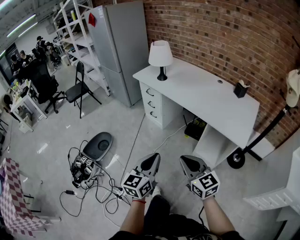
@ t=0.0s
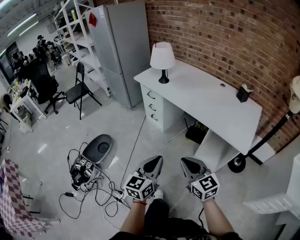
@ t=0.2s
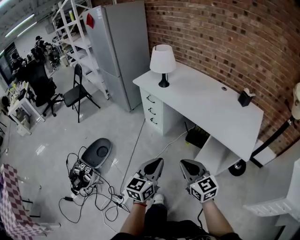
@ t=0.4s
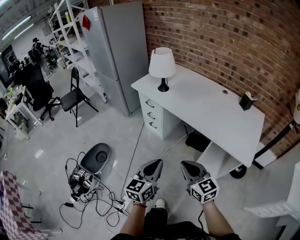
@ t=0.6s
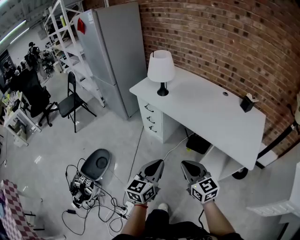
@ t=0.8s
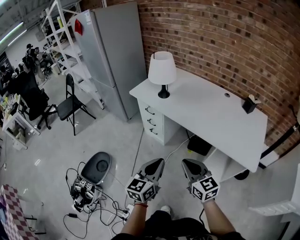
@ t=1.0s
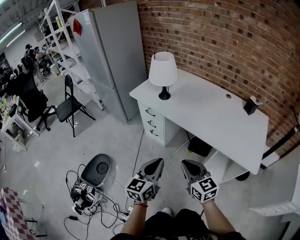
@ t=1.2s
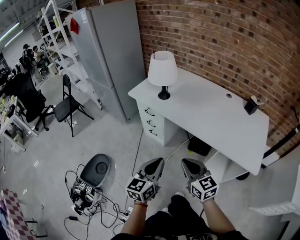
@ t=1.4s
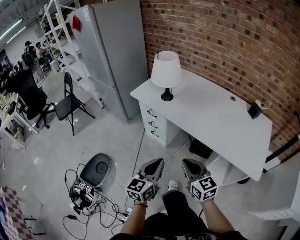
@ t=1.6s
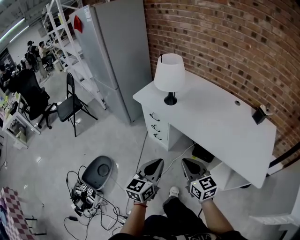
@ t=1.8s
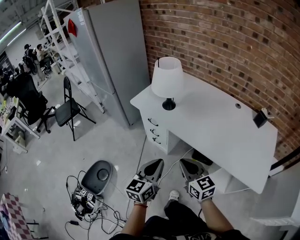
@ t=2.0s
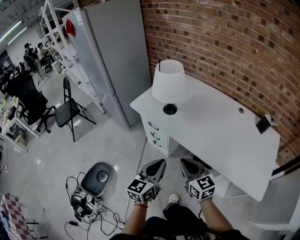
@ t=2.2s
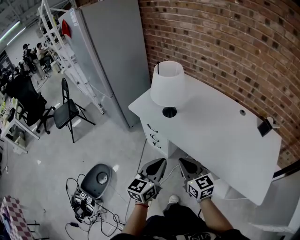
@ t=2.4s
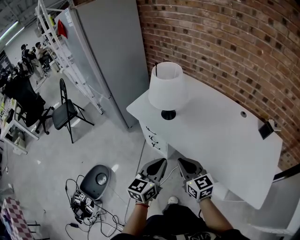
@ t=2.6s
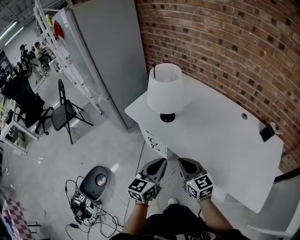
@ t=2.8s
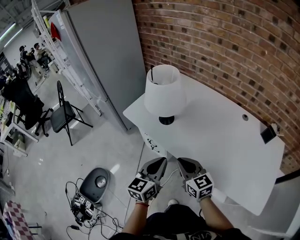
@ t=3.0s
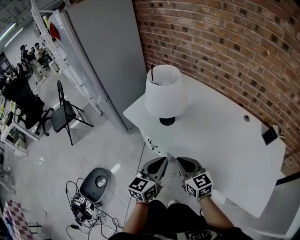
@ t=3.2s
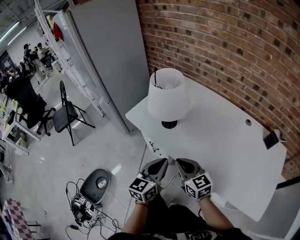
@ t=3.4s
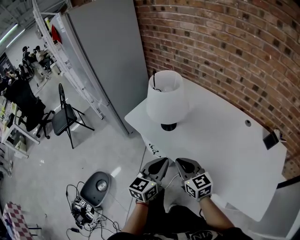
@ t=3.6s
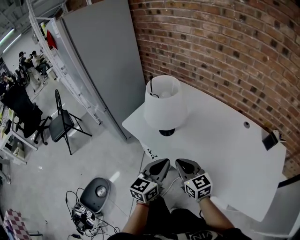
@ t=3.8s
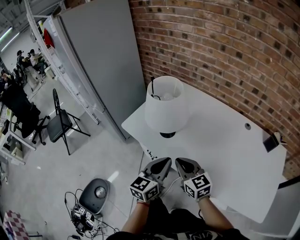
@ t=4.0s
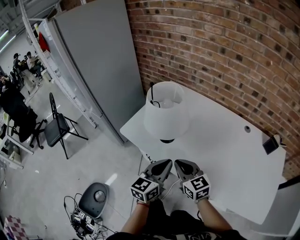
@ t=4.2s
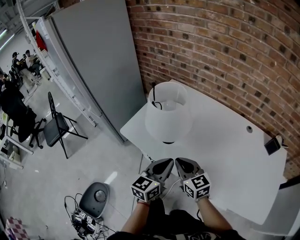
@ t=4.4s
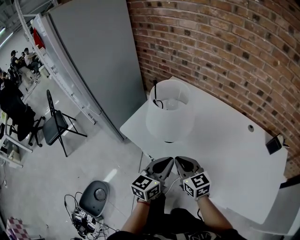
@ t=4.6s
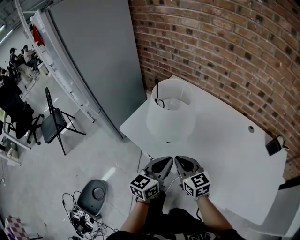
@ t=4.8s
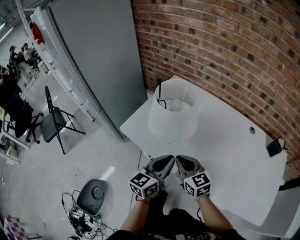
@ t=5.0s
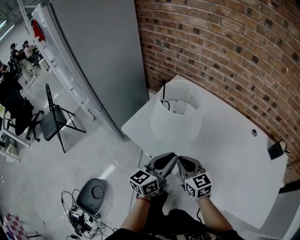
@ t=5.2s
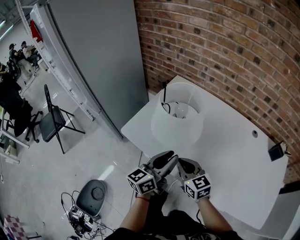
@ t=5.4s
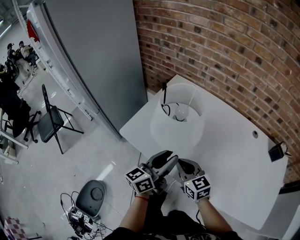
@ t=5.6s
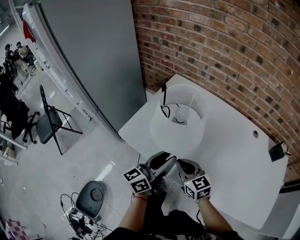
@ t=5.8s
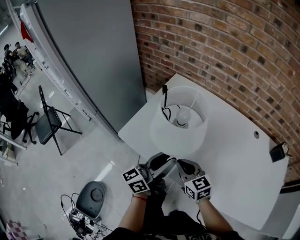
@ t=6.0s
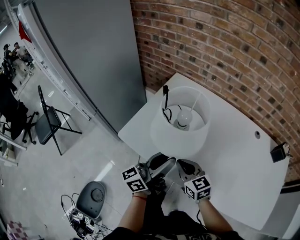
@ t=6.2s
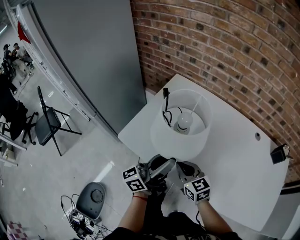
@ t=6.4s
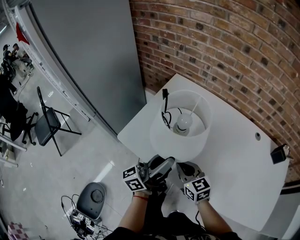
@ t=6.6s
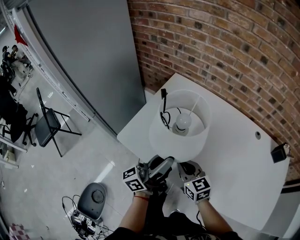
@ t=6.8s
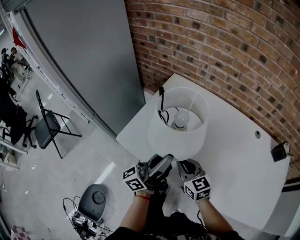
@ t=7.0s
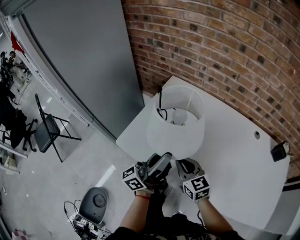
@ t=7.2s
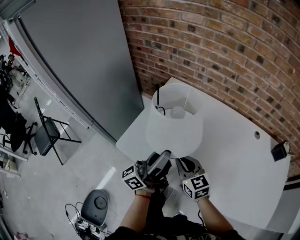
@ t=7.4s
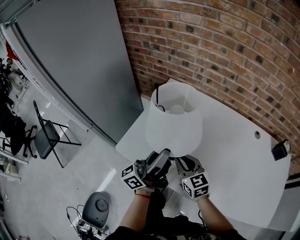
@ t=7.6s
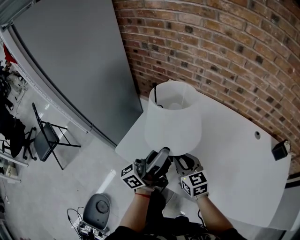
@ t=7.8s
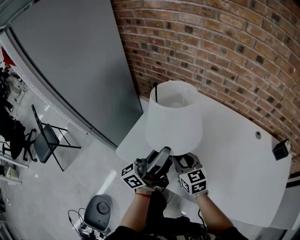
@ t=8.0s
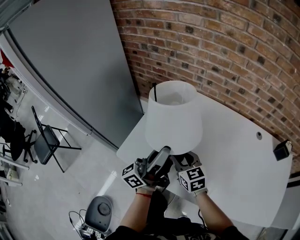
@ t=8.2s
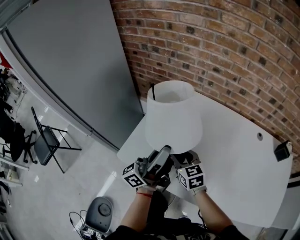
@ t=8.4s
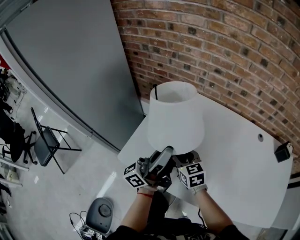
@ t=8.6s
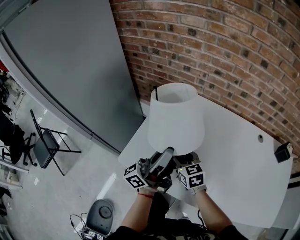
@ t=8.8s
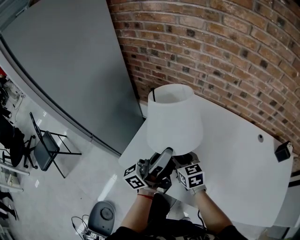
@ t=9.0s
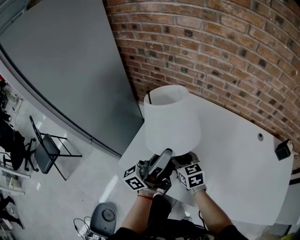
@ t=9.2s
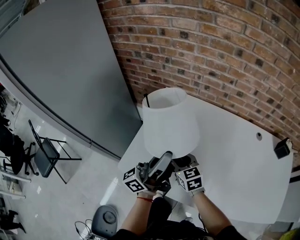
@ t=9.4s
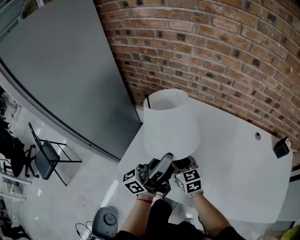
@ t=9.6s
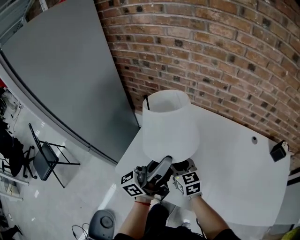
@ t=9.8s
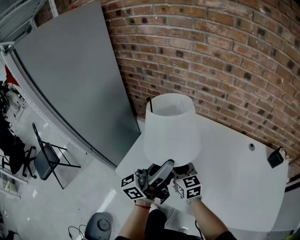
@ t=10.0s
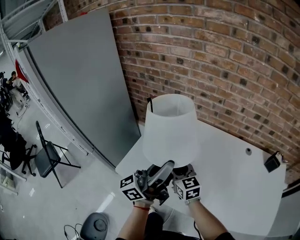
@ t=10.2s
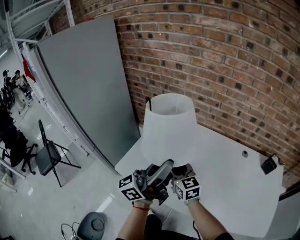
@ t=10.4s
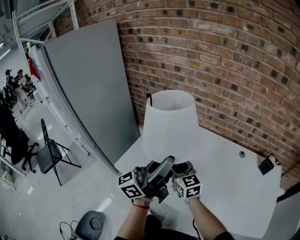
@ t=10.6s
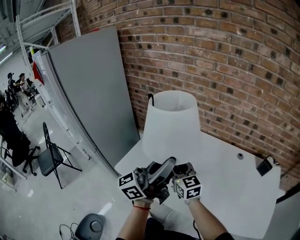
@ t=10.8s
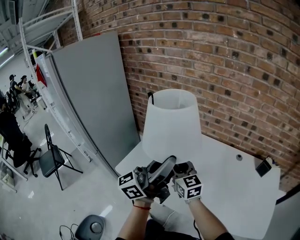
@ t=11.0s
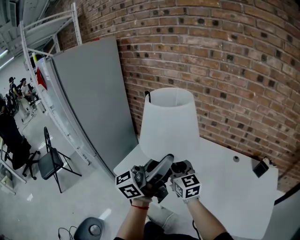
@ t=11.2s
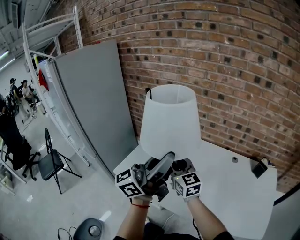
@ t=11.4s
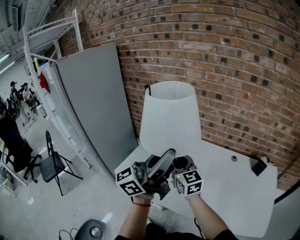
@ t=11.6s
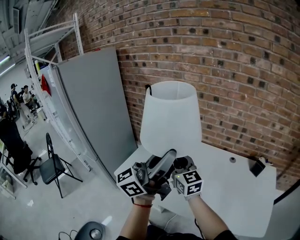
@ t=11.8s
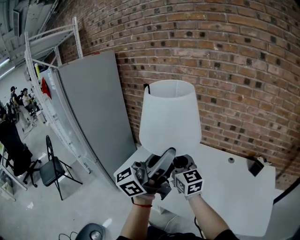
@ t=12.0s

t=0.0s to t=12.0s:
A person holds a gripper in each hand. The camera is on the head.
t=0.0s to t=1.6s: Both grippers travel together forward, approximately 30 cm.
t=1.6s to t=3.0s: Both grippers move forward, approximately 25 cm.
t=3.0s to t=4.4s: The grippers both shift forward by approximately 15 cm.
t=4.4s to t=6.0s: The right gripper is displaced forward and downward by some 10 cm; the left gripper shifts about 10 cm forward and to the left, rotates roughly 40 degrees, and opens its fingers.
t=6.0s to t=7.6s: The two grippers go approximately 5 cm forward. The left gripper closes.
t=7.6s to t=9.0s: The grippers both shift forward by about 5 cm. The right gripper opens.
t=9.0s to t=10.4s: The left gripper goes some 15 cm upward, to the right and backward; the right gripper is displaced upward by about 15 cm.
t=10.4s to t=12.0s: The left gripper travels upward, to the right and backward by about 20 cm. The right gripper moves upward and to the right, approximately 20 cm.

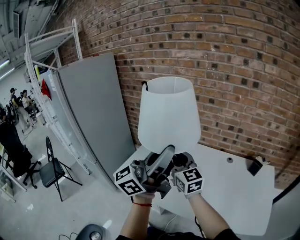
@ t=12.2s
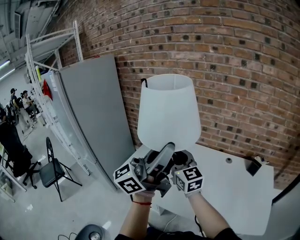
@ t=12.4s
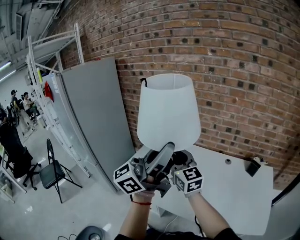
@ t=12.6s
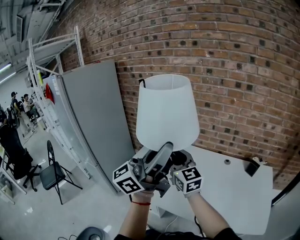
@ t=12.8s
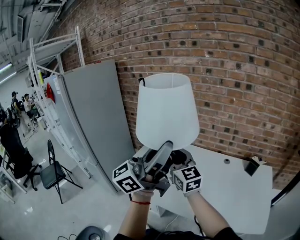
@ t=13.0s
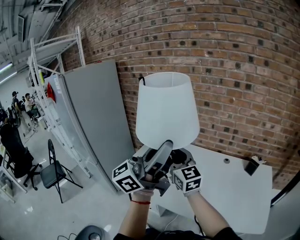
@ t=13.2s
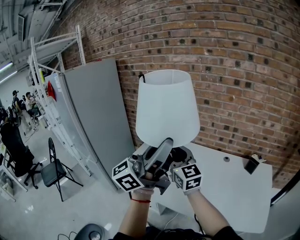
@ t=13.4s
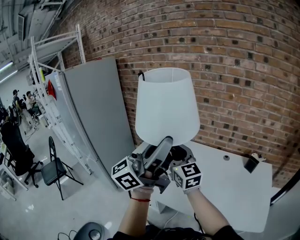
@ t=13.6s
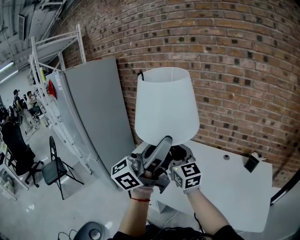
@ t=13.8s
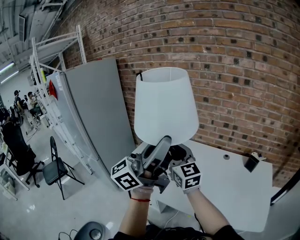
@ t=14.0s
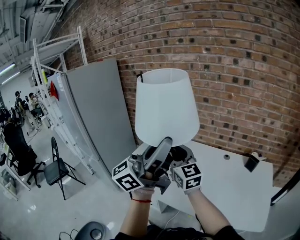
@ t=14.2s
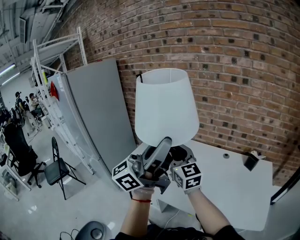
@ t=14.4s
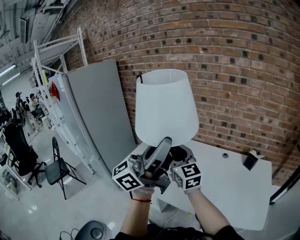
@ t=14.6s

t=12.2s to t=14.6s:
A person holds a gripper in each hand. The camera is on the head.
t=12.2s to t=13.4s: The left gripper changes place by about 5 cm. Meanwhile the right gripper changes place by roughly 5 cm.
t=13.4s to t=14.6s: There are only small adjustments of the grippers.

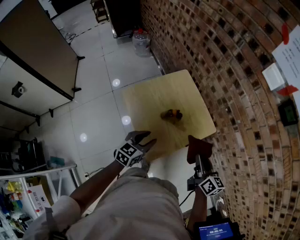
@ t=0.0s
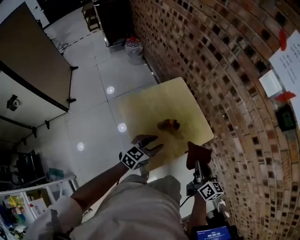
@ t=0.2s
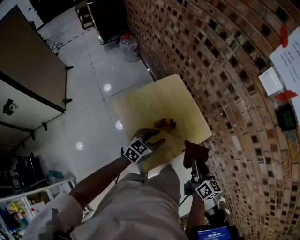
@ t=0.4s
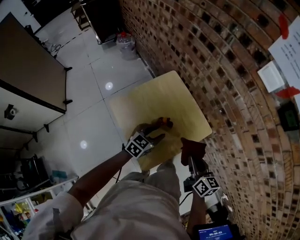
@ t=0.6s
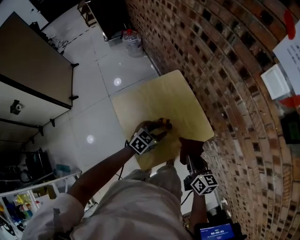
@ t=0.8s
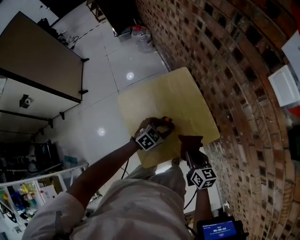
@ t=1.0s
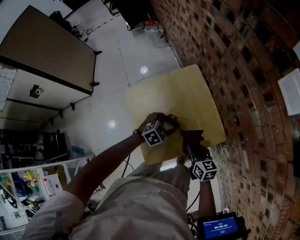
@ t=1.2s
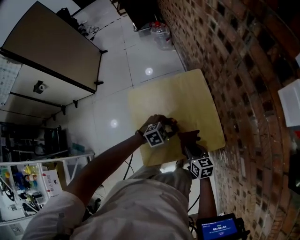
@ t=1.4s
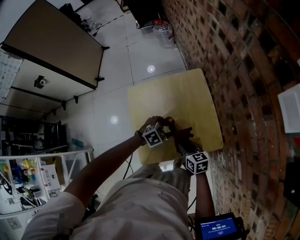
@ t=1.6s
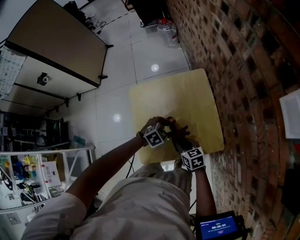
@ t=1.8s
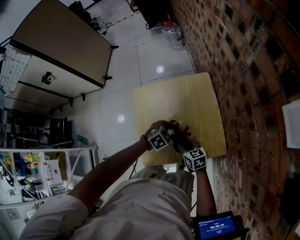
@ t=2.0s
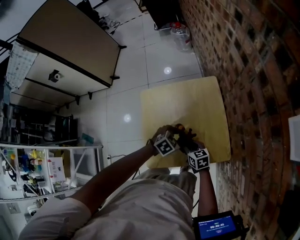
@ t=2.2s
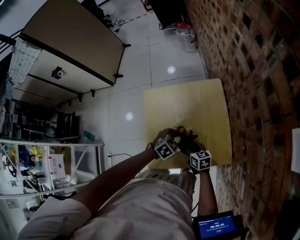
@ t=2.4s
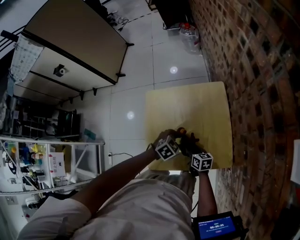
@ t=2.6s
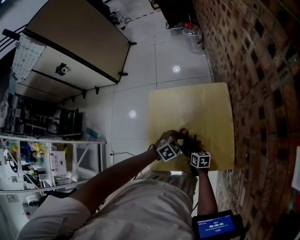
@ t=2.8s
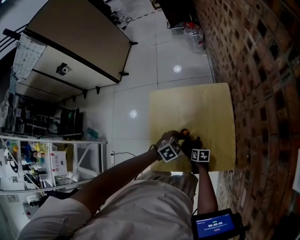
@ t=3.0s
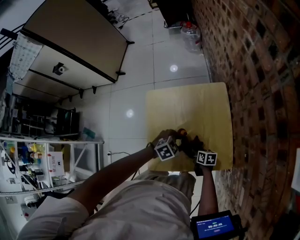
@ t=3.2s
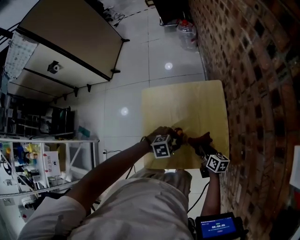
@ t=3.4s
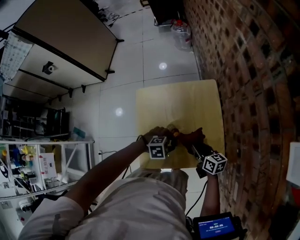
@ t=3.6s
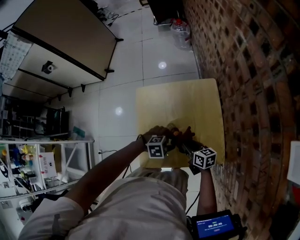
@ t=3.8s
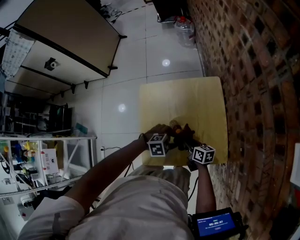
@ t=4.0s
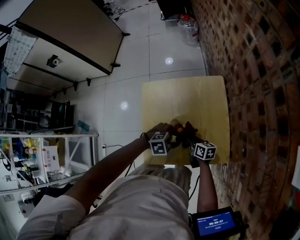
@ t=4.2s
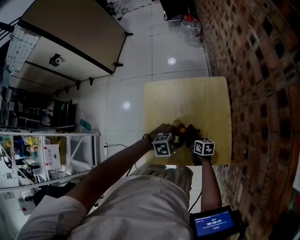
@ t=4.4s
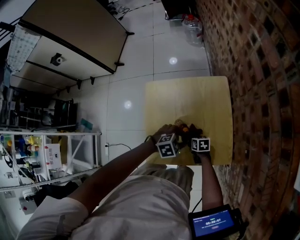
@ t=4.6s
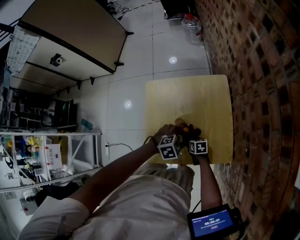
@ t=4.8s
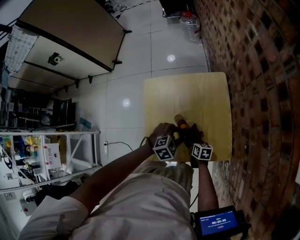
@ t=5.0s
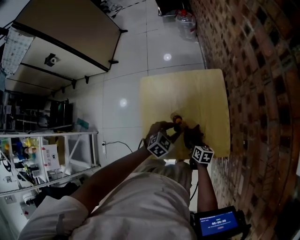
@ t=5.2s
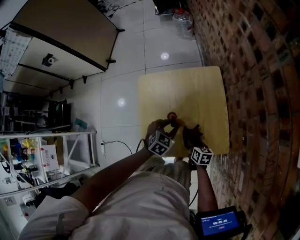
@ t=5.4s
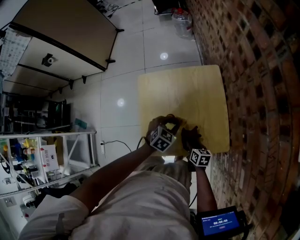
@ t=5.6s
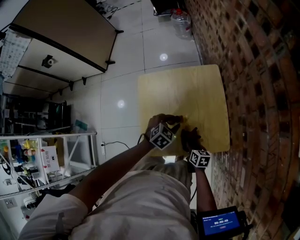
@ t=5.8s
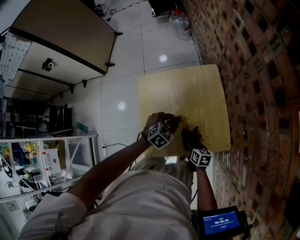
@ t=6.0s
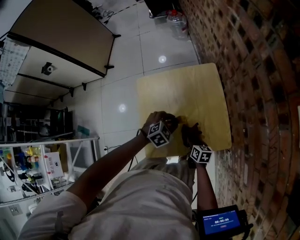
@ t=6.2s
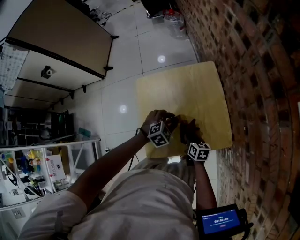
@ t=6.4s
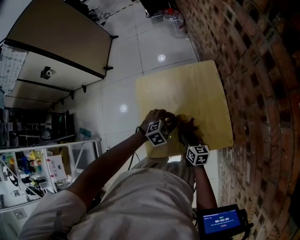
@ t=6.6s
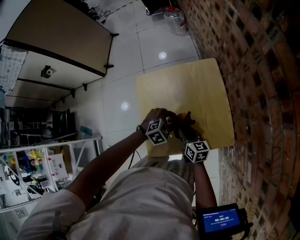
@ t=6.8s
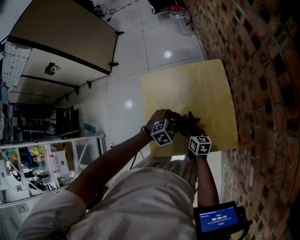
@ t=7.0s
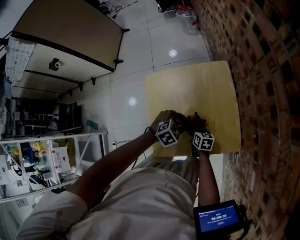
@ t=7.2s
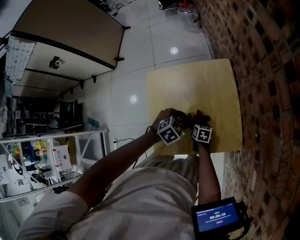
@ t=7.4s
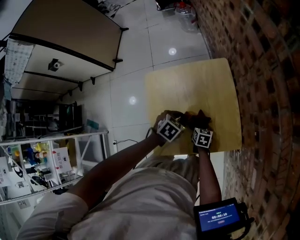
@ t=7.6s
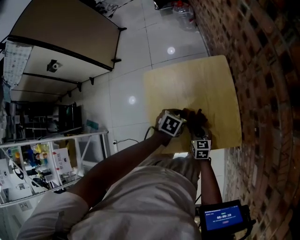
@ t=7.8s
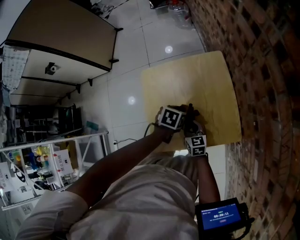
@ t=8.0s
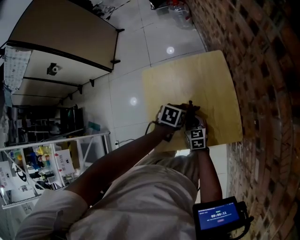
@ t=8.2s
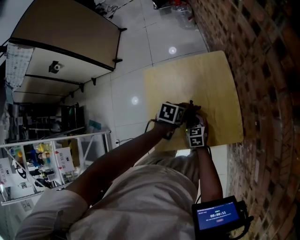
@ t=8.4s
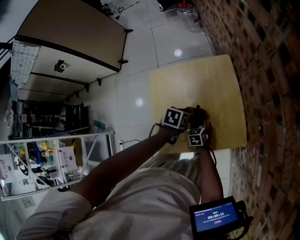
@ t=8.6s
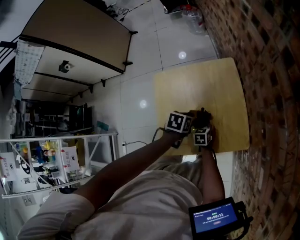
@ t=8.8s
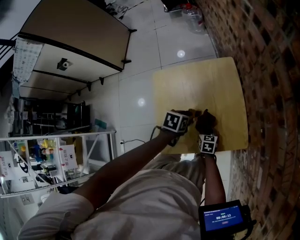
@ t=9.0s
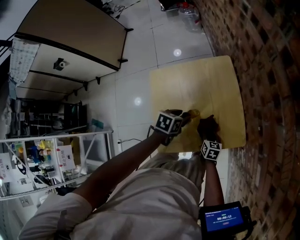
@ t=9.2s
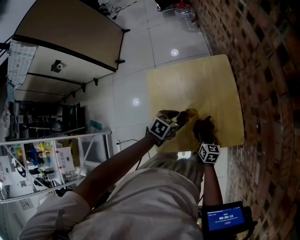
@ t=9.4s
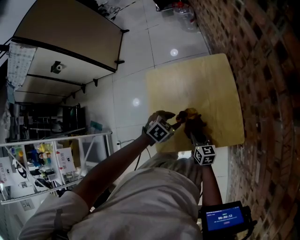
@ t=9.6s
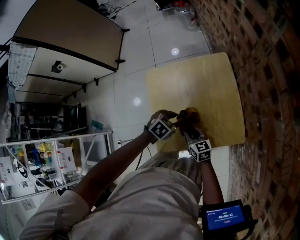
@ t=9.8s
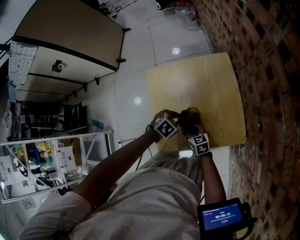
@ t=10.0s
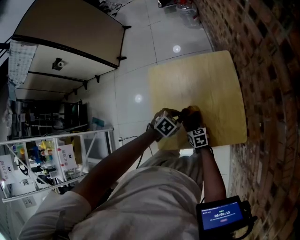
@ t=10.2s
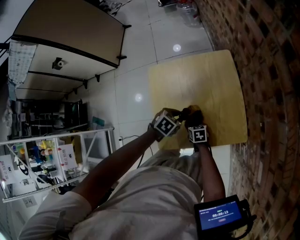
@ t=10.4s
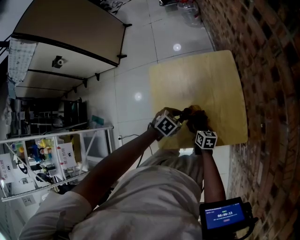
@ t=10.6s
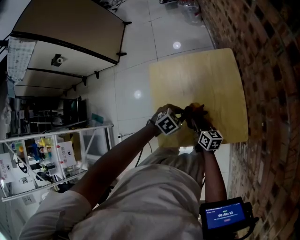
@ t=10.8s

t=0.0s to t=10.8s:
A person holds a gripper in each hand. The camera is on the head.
t=0.0s to t=1.6s: The right gripper travels downward and forward by some 20 cm, and swivels some 50 degrees. The left gripper heads forward, downward and to the right, covering approximately 25 cm, and tilts its fingers roughly 30 degrees downward.
t=1.6s to t=3.0s: The right gripper moves downward, about 20 cm, and turns by some 30 degrees.
t=3.0s to t=4.6s: The right gripper goes upward and returns, some 20 cm each way.
t=4.6s to t=6.2s: The right gripper moves approximately 10 cm, and turns by approximately 20 degrees.
t=6.2s to t=7.8s: The right gripper moves up and down over about 15 cm, changing direction 2 times, and turns by some 20 degrees; the left gripper turns by some 40 degrees.
t=7.8s to t=9.2s: The right gripper goes roughly 5 cm to the right.
t=9.2s to t=10.8s: The right gripper swings up and down, approximately 10 cm each way, with 2 reversals, and swivels approximately 20 degrees; the left gripper turns by about 30 degrees, and closes its fingers.
